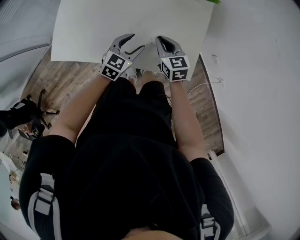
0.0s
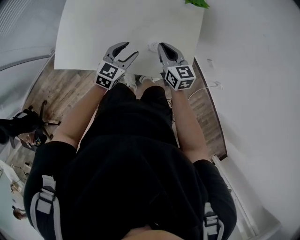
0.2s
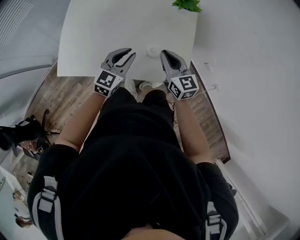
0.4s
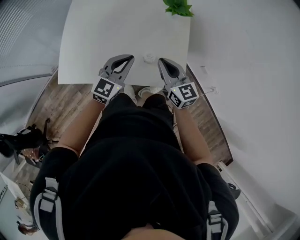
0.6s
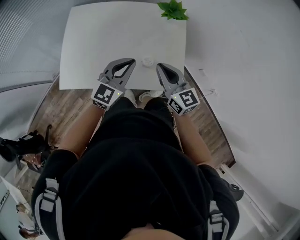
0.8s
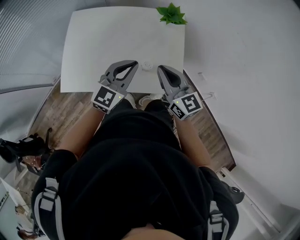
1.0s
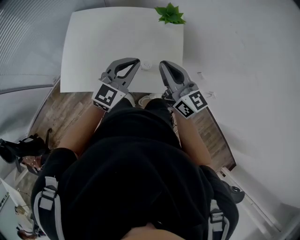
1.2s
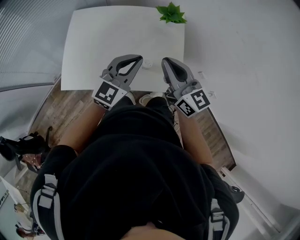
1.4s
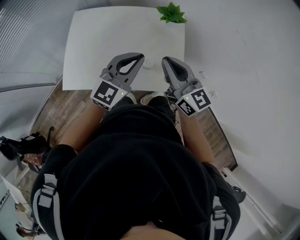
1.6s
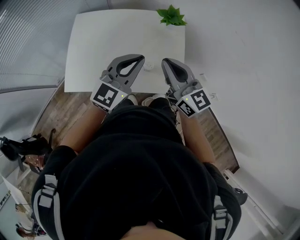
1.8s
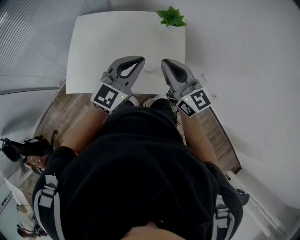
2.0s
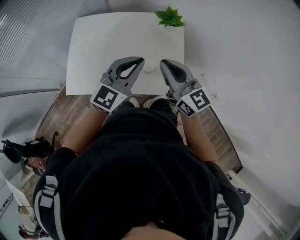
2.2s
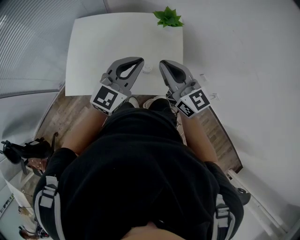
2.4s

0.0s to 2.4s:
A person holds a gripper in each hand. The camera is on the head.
0.0s to 1.2s: The grippers both shift upward by some 30 cm. The right gripper angles its fingers upward, by some 30 degrees, while the left gripper swivels approximately 30 degrees, and closes up.
1.2s to 2.4s: The left gripper goes about 5 cm upward.

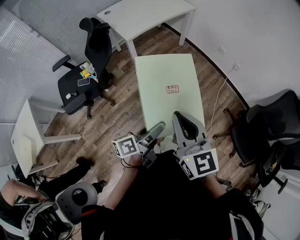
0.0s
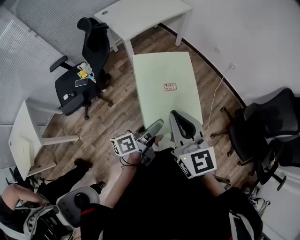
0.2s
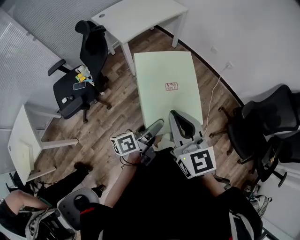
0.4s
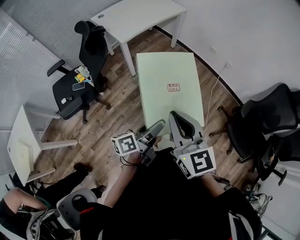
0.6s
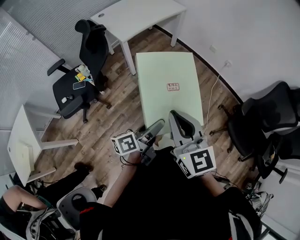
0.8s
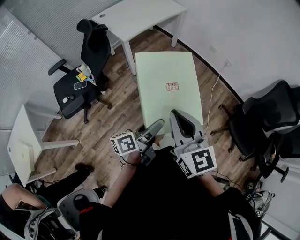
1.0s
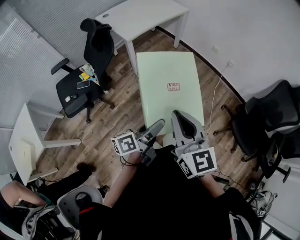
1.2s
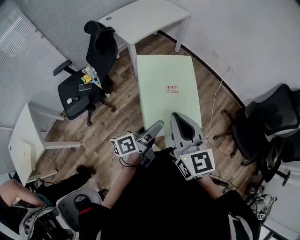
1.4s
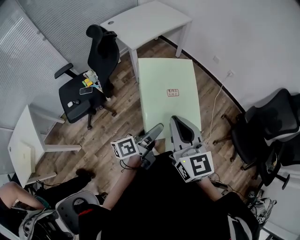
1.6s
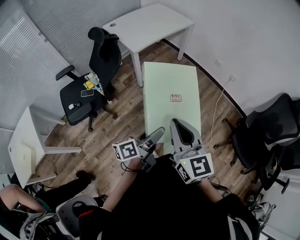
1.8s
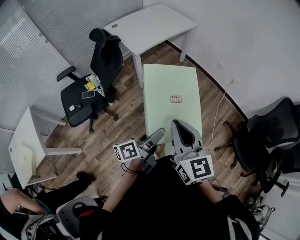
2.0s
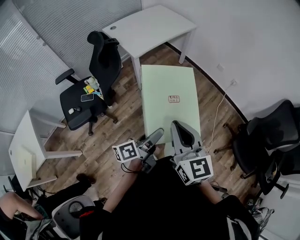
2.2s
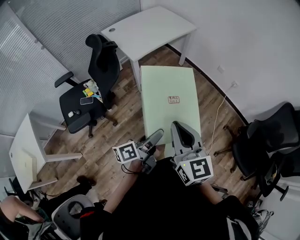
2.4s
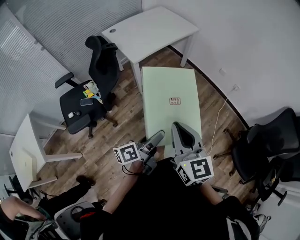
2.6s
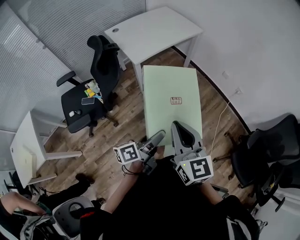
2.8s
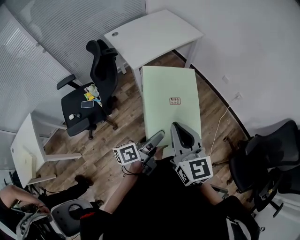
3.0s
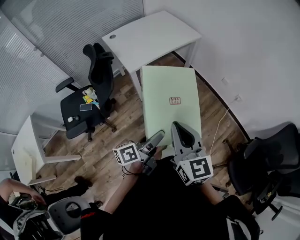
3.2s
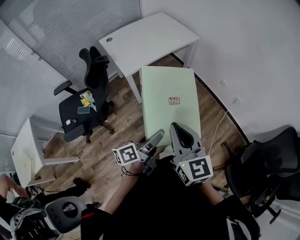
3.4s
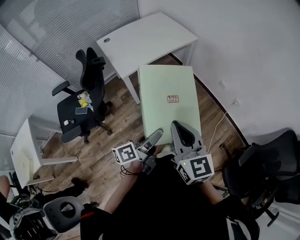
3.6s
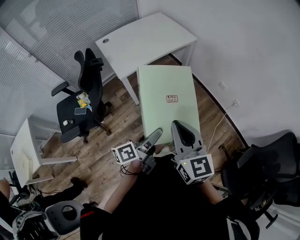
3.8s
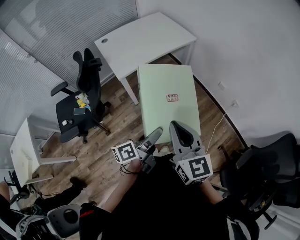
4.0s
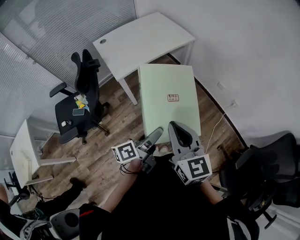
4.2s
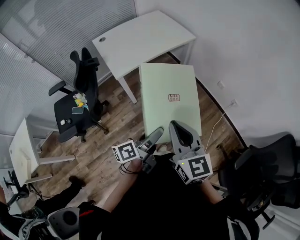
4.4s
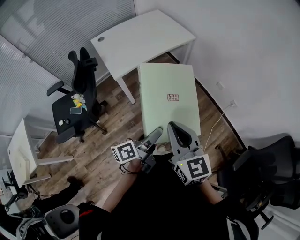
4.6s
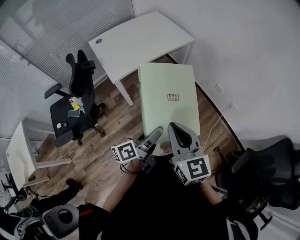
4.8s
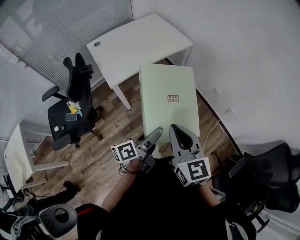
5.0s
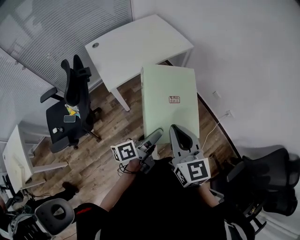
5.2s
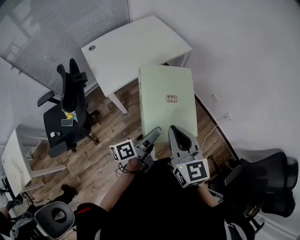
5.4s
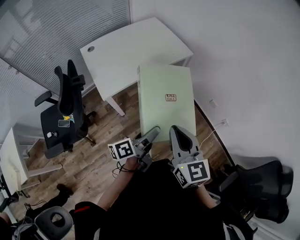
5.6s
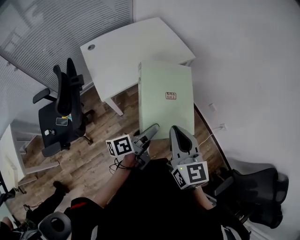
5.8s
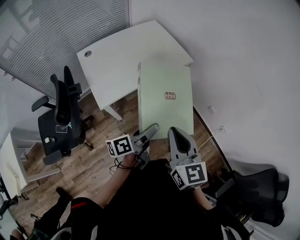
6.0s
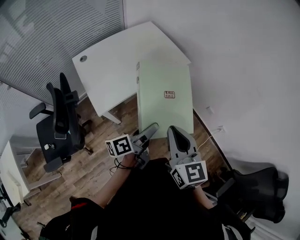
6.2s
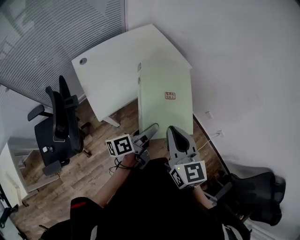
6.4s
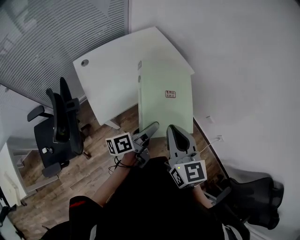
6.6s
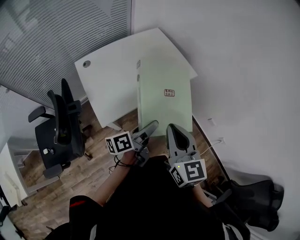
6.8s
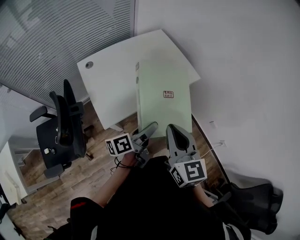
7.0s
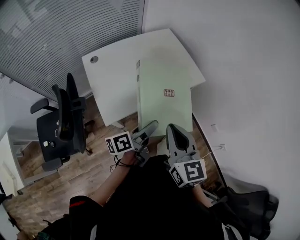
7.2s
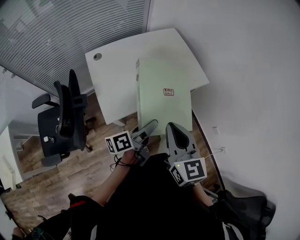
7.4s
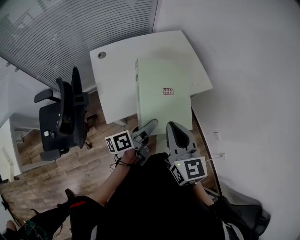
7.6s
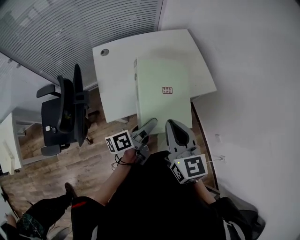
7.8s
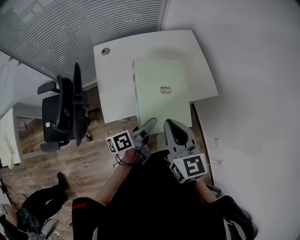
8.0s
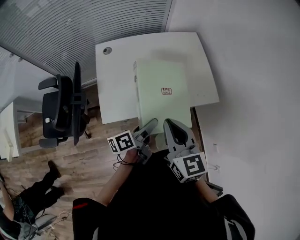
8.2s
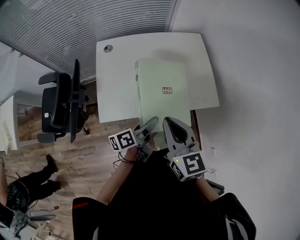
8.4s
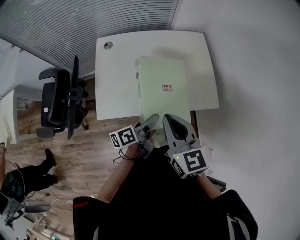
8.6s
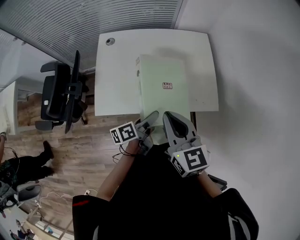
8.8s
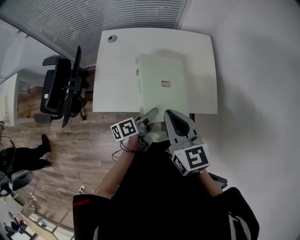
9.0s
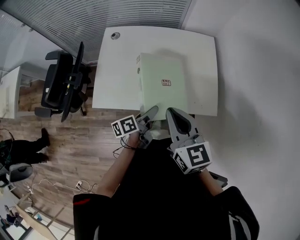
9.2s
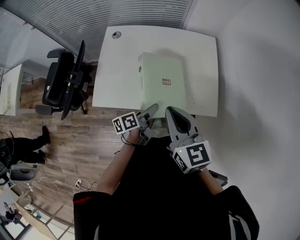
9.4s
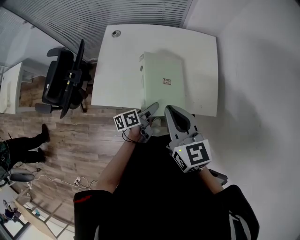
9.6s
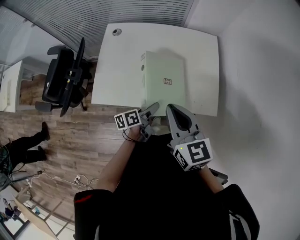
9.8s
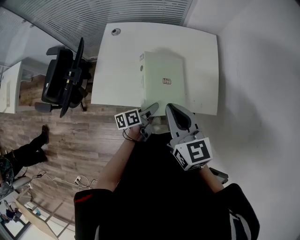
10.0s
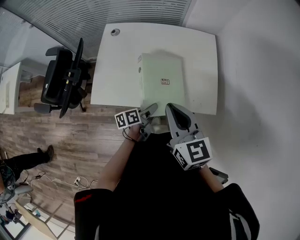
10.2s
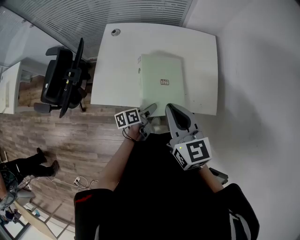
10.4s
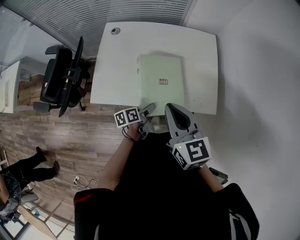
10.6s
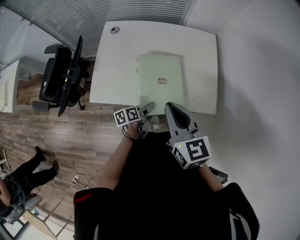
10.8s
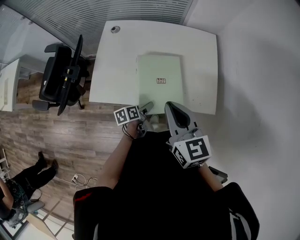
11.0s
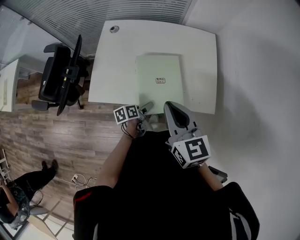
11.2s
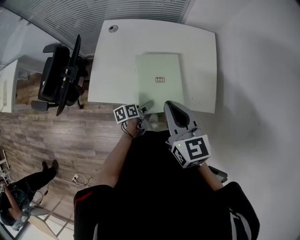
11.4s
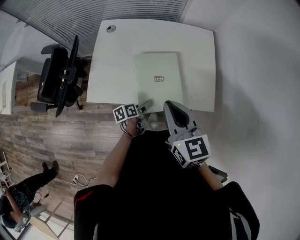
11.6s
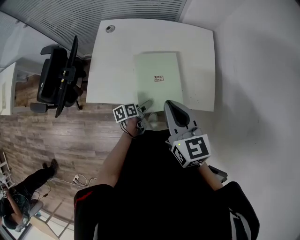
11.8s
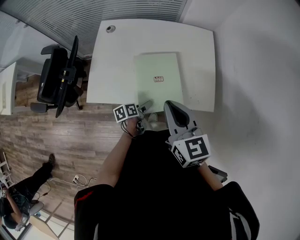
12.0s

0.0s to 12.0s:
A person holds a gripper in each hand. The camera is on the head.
0.0s to 1.6s: The right gripper travels to the left and backward by approximately 10 cm; the left gripper travels to the left by some 5 cm.
1.6s to 3.0s: Both grippers move forward, some 20 cm.
3.0s to 4.4s: The two grippers go roughly 15 cm forward and to the right.
4.4s to 6.0s: Both grippers move forward, some 25 cm.
6.0s to 7.6s: Both grippers travel together forward and to the left, about 20 cm.
7.6s to 9.0s: The left gripper changes place by about 20 cm, and rotates roughly 30 degrees. The right gripper changes place by approximately 20 cm, and rotates about 30 degrees.
9.0s to 10.4s: The left gripper heads downward, covering roughly 10 cm.
10.4s to 12.0s: The left gripper moves downward, approximately 5 cm.

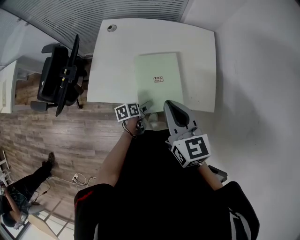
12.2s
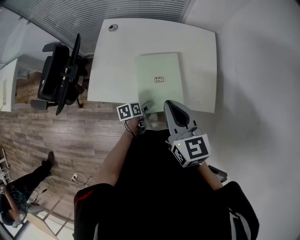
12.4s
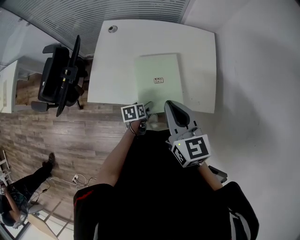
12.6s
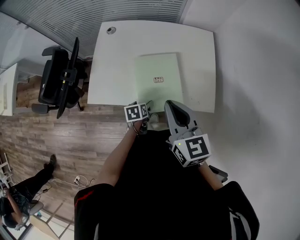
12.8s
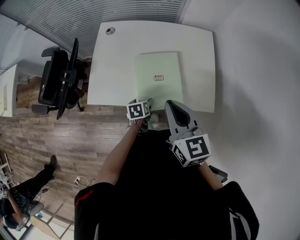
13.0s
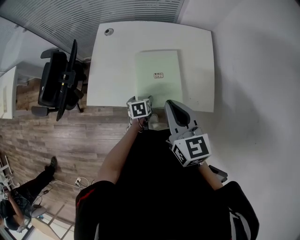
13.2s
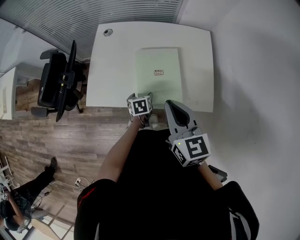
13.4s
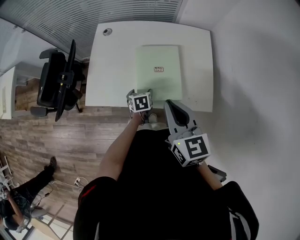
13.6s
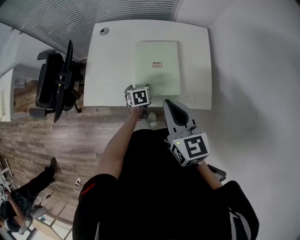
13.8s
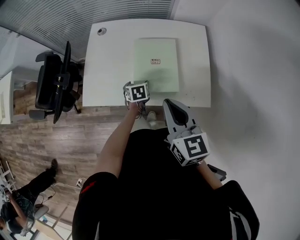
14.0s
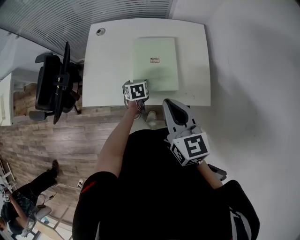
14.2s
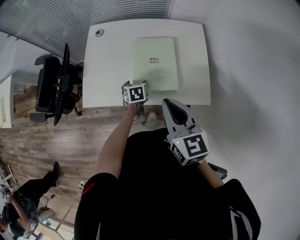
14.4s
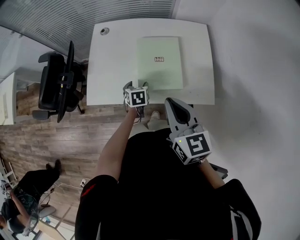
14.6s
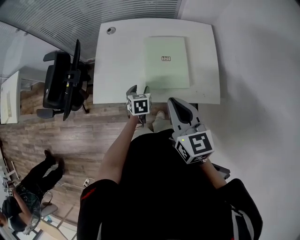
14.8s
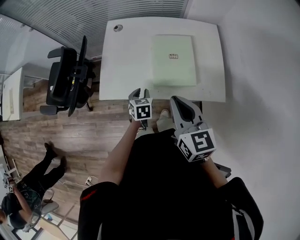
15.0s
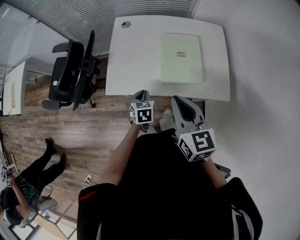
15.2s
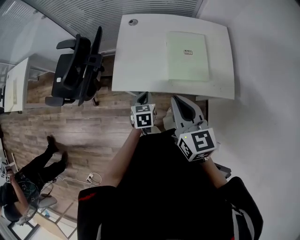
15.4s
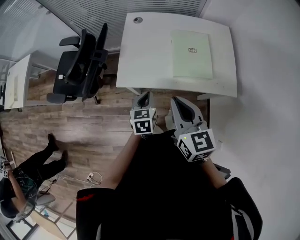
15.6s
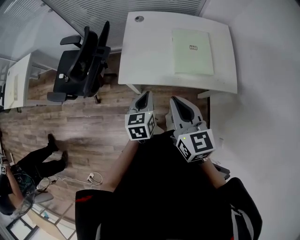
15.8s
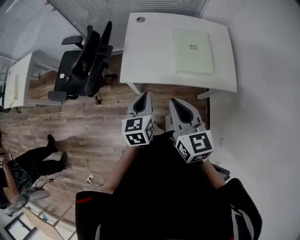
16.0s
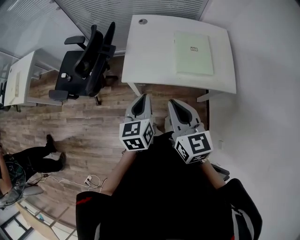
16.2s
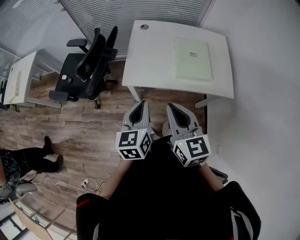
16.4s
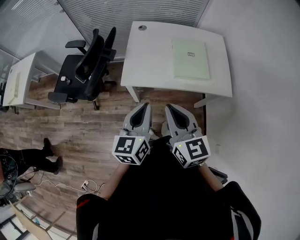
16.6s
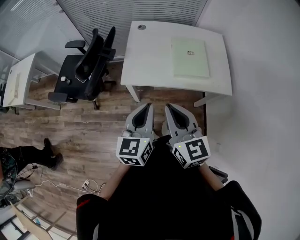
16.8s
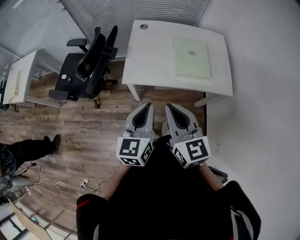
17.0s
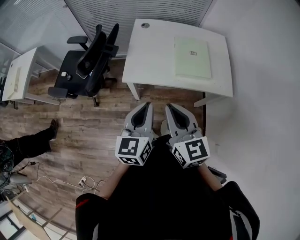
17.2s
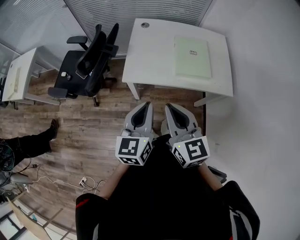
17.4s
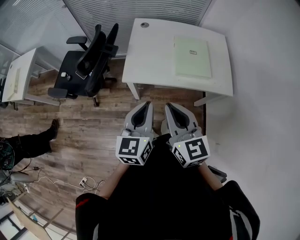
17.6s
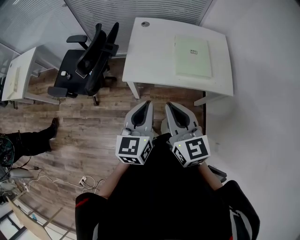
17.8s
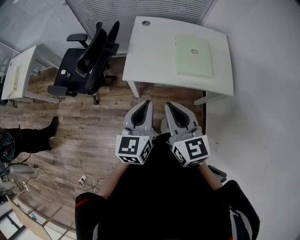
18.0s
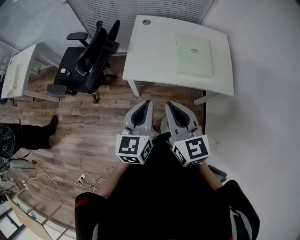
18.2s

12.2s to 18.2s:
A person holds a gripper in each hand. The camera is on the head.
12.2s to 13.8s: The left gripper travels forward by some 10 cm, and turns by some 40 degrees.
13.8s to 15.2s: The left gripper heads to the left, backward and upward, covering roughly 15 cm, and closes its fingers. Meanwhile the right gripper shifts approximately 10 cm to the left.
15.2s to 16.6s: The right gripper is displaced to the left and backward by roughly 20 cm. Meanwhile the left gripper shifts about 30 cm upward and backward, and points its fingers roughly 40 degrees further upward.
16.6s to 18.2s: The grippers stay close to where they were, moving slightly.

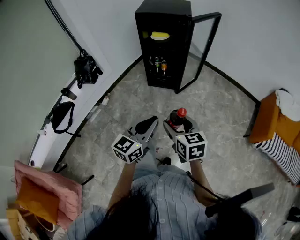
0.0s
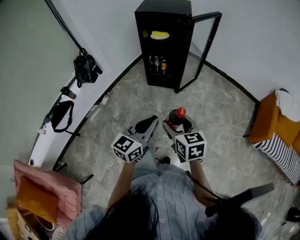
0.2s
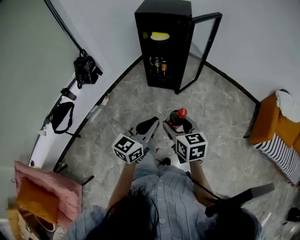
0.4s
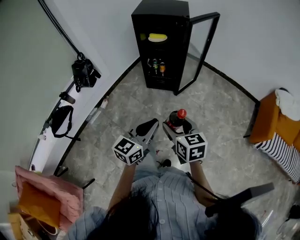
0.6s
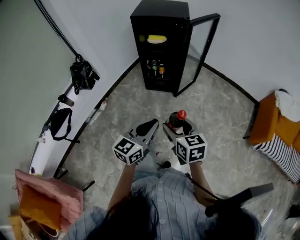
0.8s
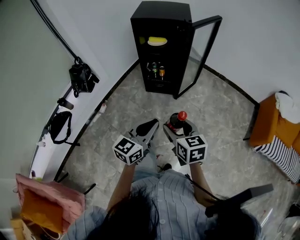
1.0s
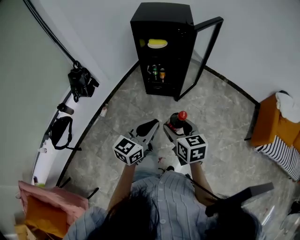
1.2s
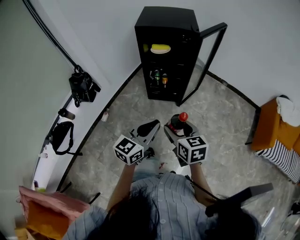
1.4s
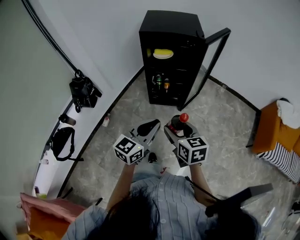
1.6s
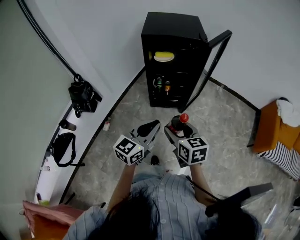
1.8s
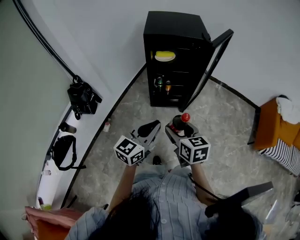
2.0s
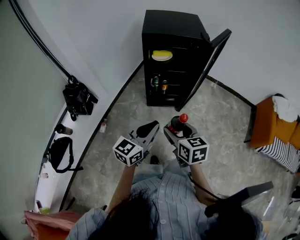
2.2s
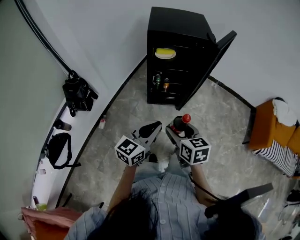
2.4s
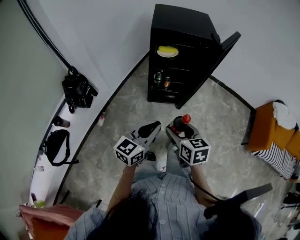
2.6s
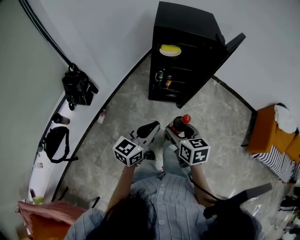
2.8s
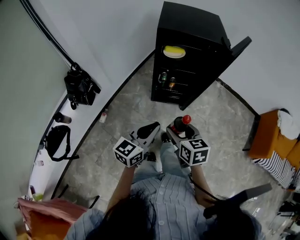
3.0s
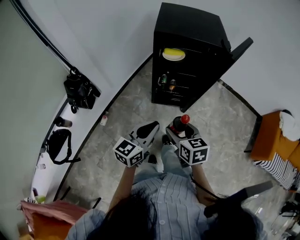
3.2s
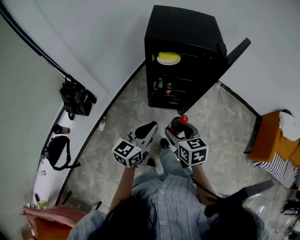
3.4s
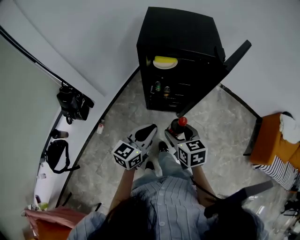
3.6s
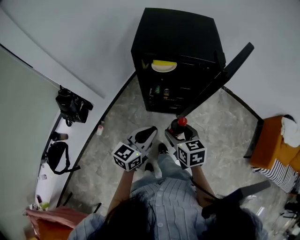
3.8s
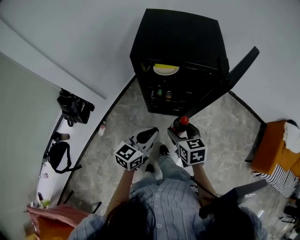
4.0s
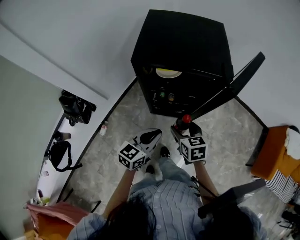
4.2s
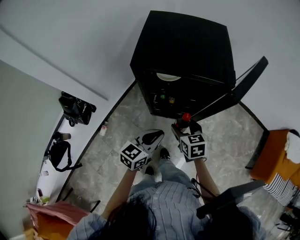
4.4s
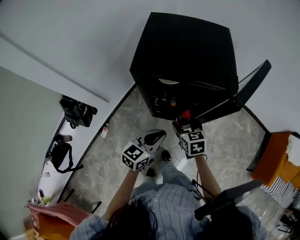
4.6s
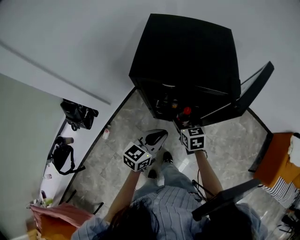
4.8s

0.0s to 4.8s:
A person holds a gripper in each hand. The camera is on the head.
0.0s to 1.6s: Both grippers move forward and to the left, approximately 20 cm.
1.6s to 3.2s: The two grippers go some 15 cm forward, to the left and downward.
3.2s to 4.8s: Both grippers travel together forward, roughly 30 cm.
